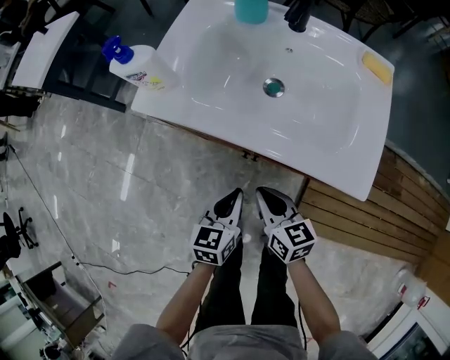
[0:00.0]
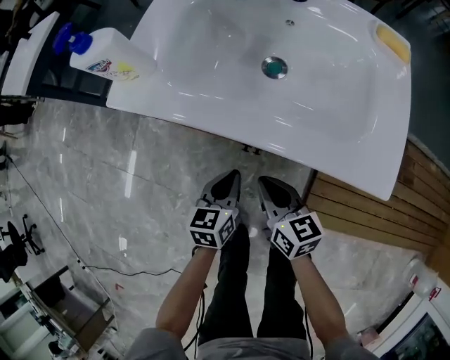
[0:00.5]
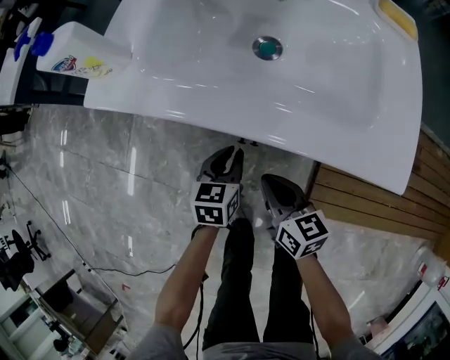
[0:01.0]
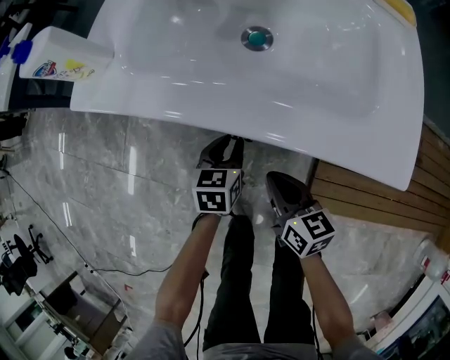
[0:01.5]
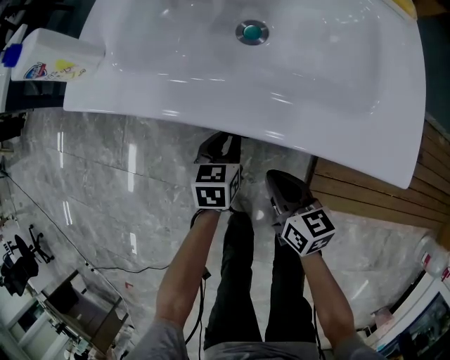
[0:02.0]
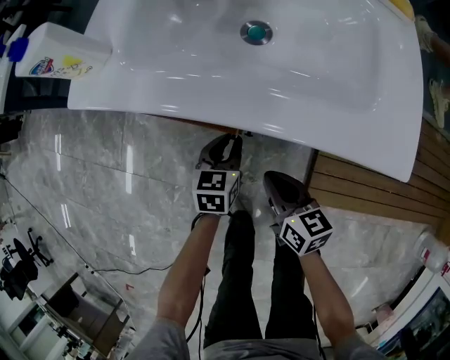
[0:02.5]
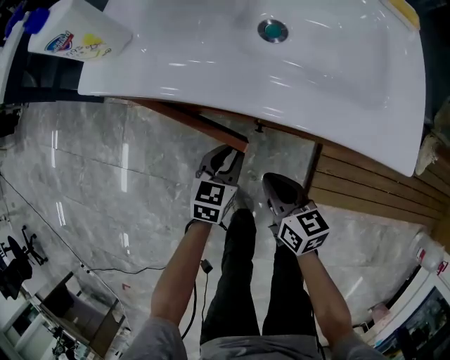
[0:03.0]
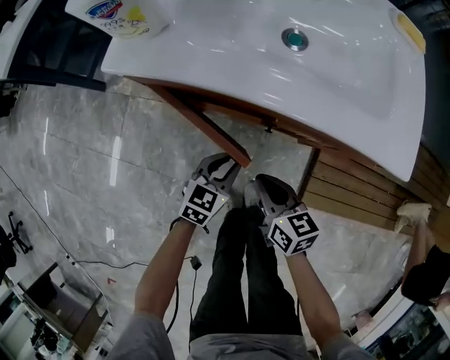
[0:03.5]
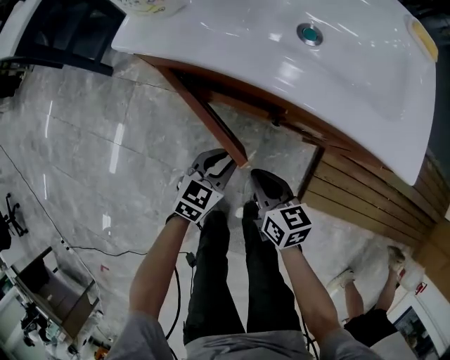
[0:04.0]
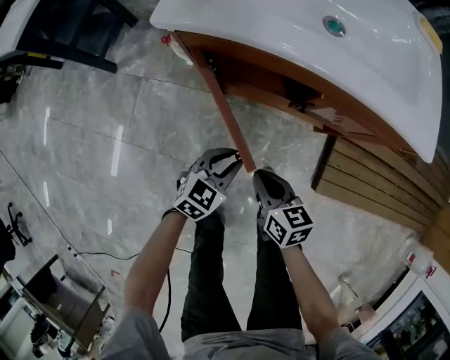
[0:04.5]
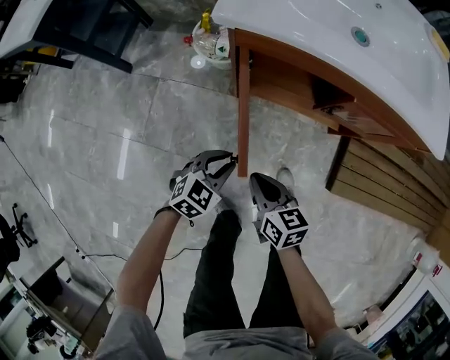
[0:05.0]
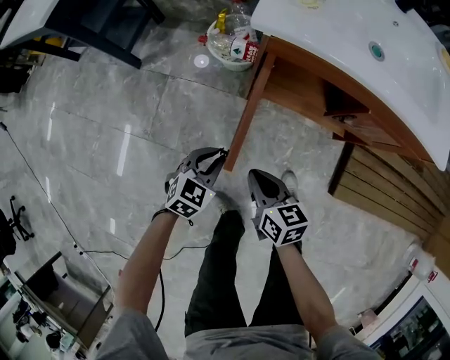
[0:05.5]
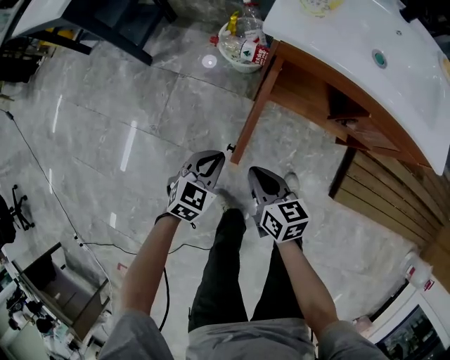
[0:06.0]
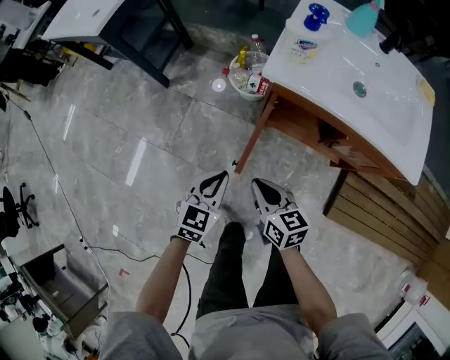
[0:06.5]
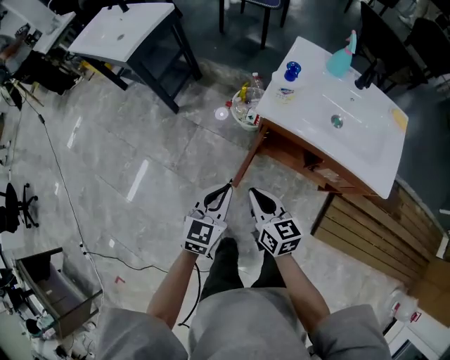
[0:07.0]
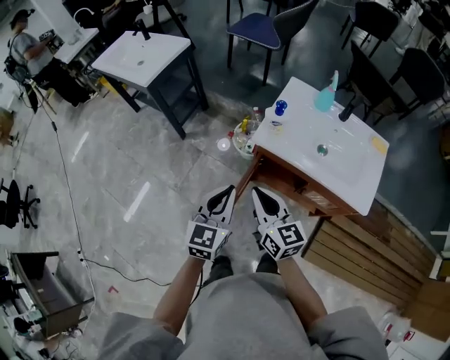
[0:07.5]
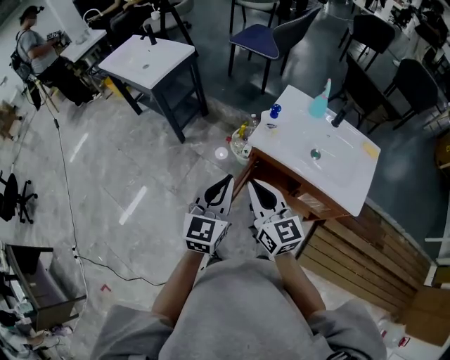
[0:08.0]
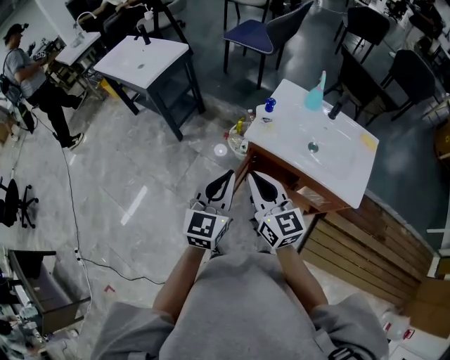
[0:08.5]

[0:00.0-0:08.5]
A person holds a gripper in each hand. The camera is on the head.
0:00.0 to 0:02.0: The left gripper goes approximately 20 cm downward and forward. The right gripper is displaced downward by approximately 10 cm.
0:02.0 to 0:04.0: The left gripper goes roughly 10 cm backward and to the left, and turns by approximately 20 degrees. The right gripper goes some 10 cm to the left.
0:04.0 to 0:06.5: The grippers both shift to the left and upward by approximately 30 cm.
0:06.5 to 0:08.5: The two grippers go approximately 35 cm upward. The left gripper changes its angle by approximately 30 degrees; the right gripper turns by approximately 30 degrees.

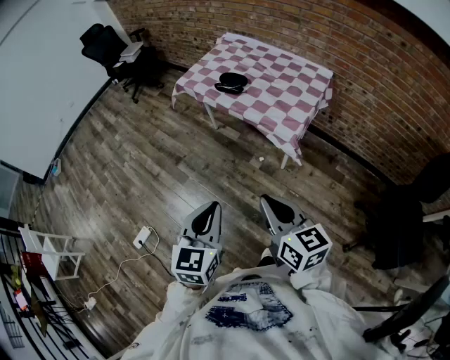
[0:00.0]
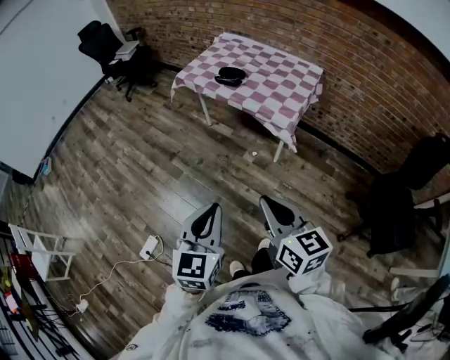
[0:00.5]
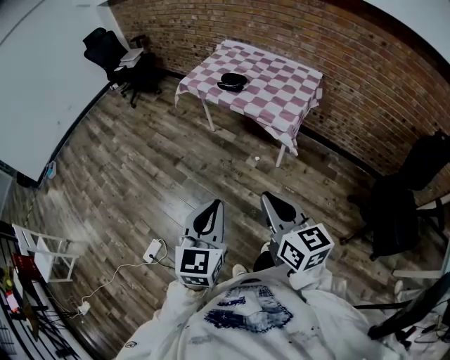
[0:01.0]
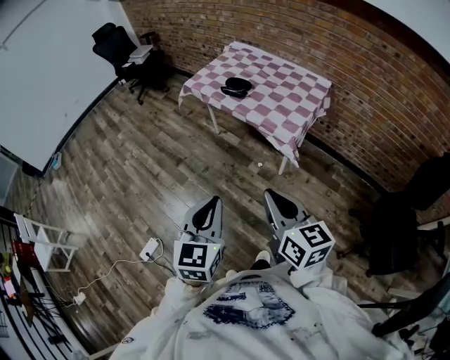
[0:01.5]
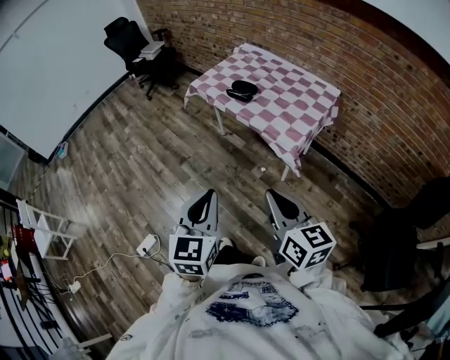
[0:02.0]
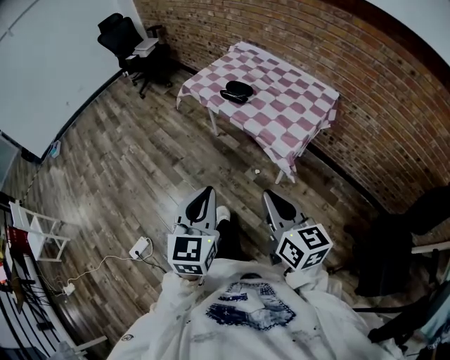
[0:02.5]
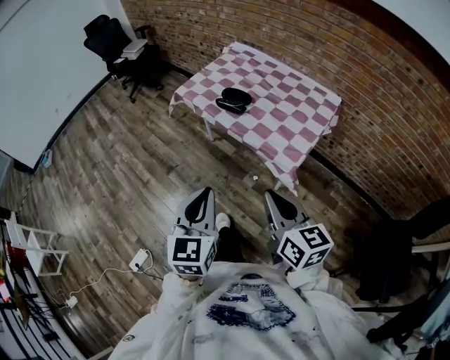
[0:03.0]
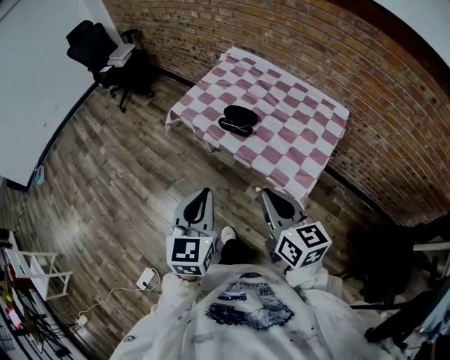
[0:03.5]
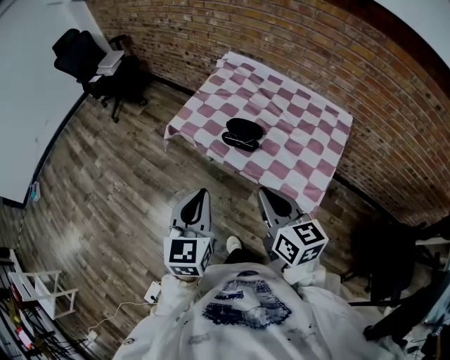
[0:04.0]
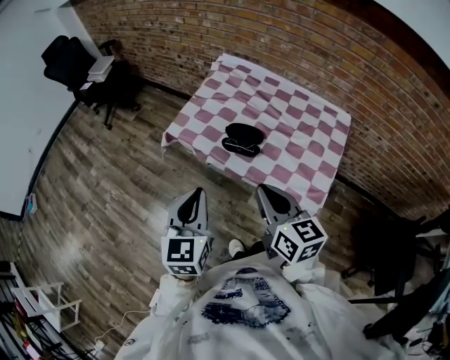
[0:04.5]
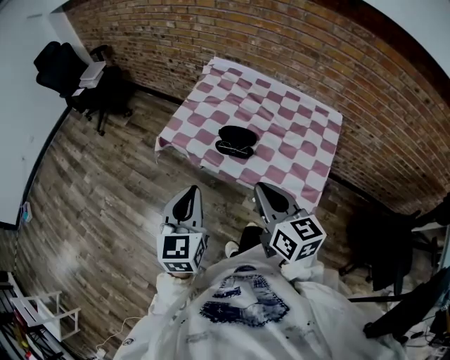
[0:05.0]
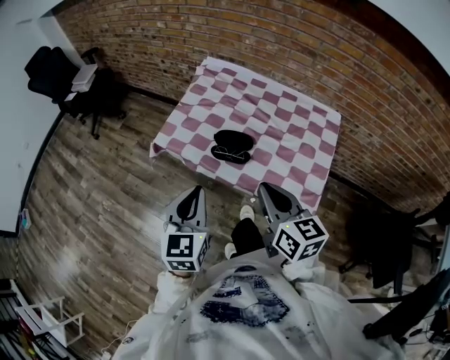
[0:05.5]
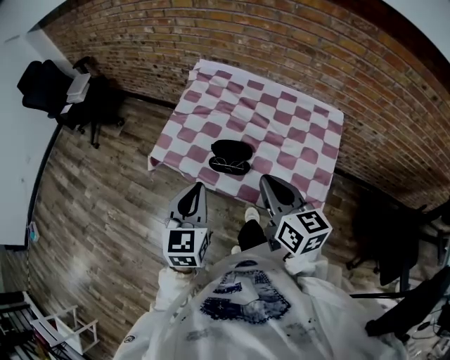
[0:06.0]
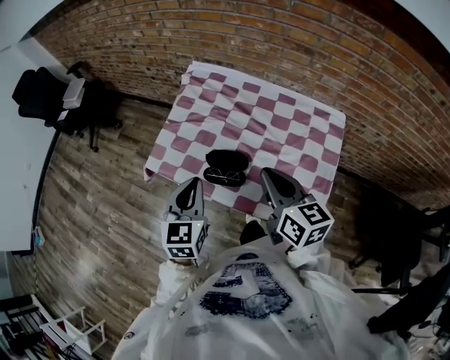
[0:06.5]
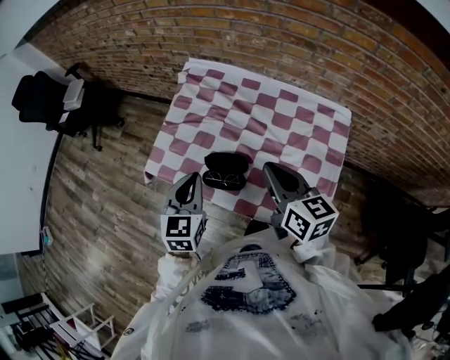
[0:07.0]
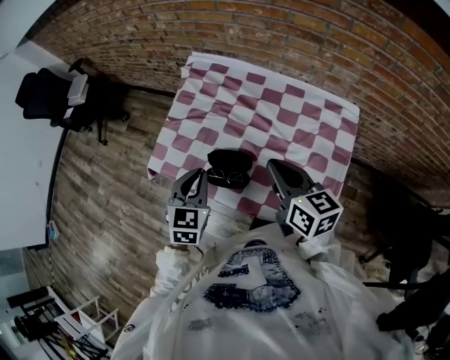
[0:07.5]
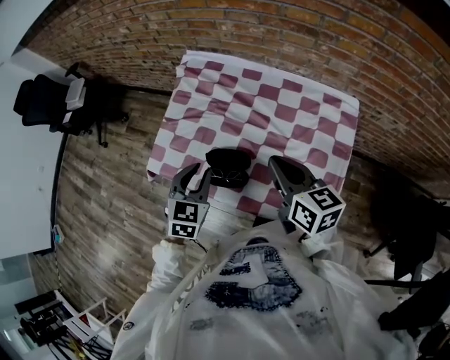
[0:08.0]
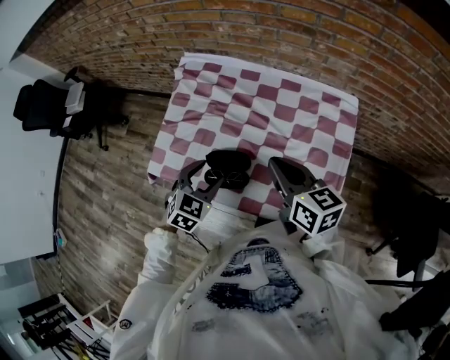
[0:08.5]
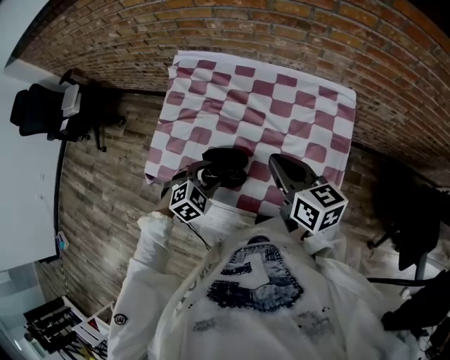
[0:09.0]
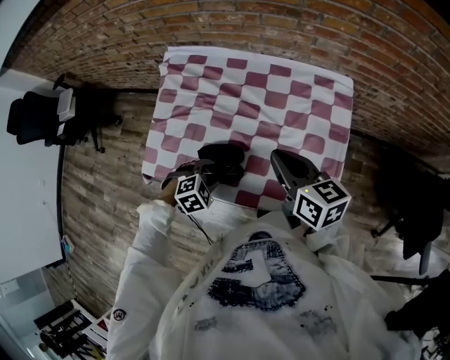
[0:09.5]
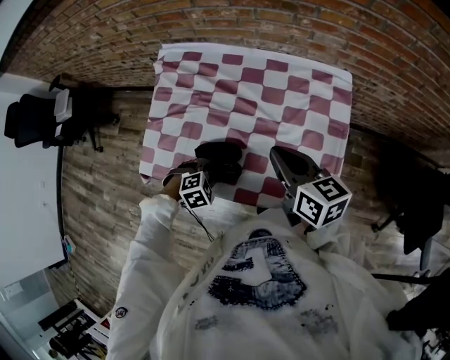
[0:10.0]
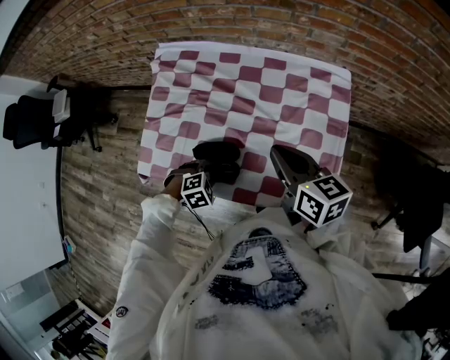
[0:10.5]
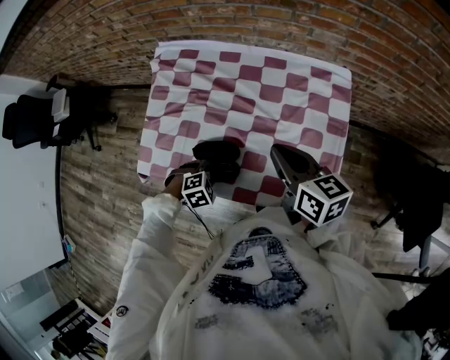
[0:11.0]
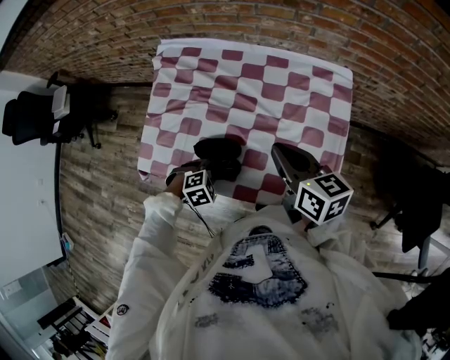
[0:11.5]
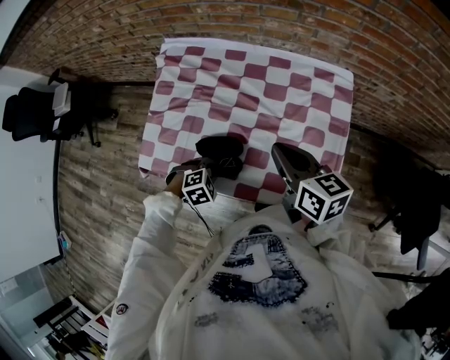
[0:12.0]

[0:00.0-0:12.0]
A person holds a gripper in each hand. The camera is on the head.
0:00.0 to 0:02.0: The right gripper goes backward and returns, some 10 cm each way; the left gripper moves approximately 10 cm backward and comes back.
0:02.0 to 0:04.0: The pair of grippers is taken forward, about 40 cm.
0:04.0 to 0:06.0: Both grippers travel together forward, roughly 15 cm.
0:06.0 to 0:08.0: The right gripper goes some 15 cm forward and to the right. The left gripper shifts about 20 cm forward, downward and to the right, and changes its angle by about 20 degrees.
0:08.0 to 0:10.0: The left gripper is displaced downward by about 20 cm, and angles its fingers downward, by roughly 40 degrees.
0:10.0 to 0:12.0: The left gripper closes.

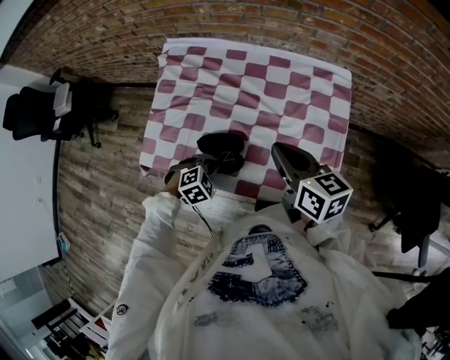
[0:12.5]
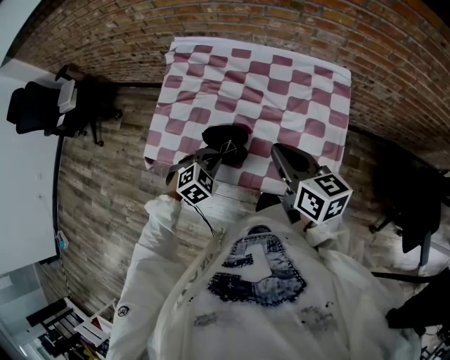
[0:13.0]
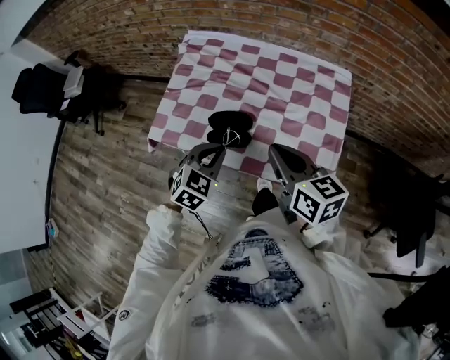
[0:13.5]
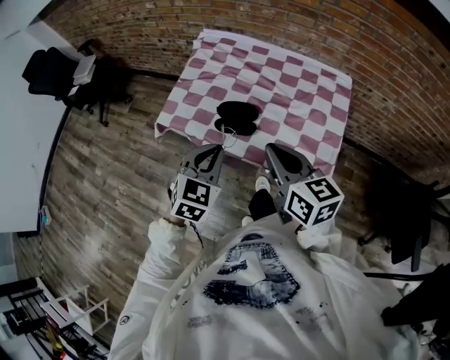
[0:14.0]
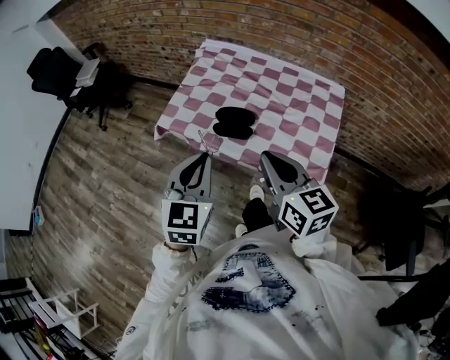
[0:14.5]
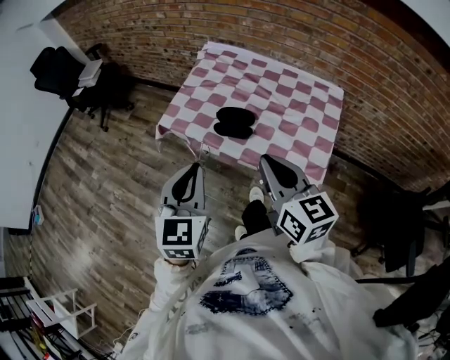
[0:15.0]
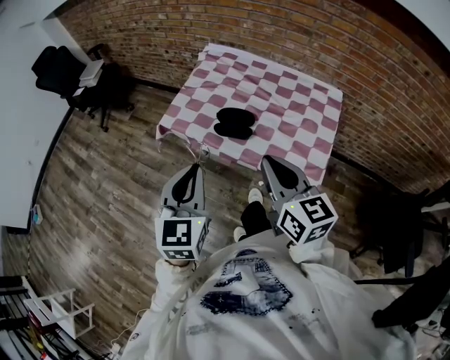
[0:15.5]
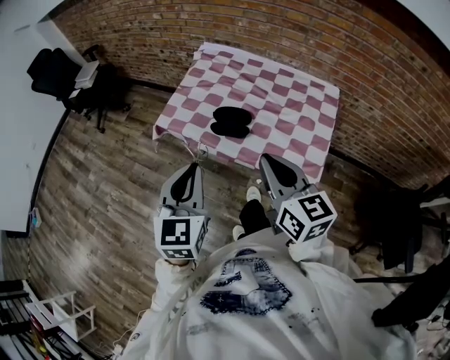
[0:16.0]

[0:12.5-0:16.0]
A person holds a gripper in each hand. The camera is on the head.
0:12.5 to 0:14.5: The left gripper moves upward and backward, roughly 35 cm, and tilts its fingers about 50 degrees upward, while the right gripper goes some 25 cm backward and upward.
0:14.5 to 0:16.0: The left gripper ends up approximately 5 cm from where it was.

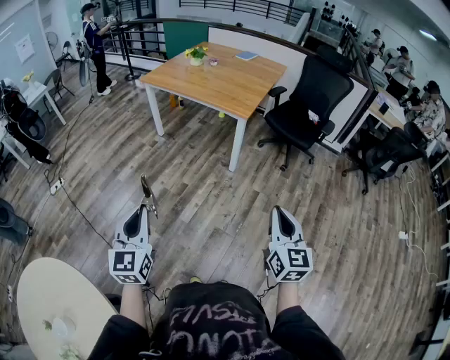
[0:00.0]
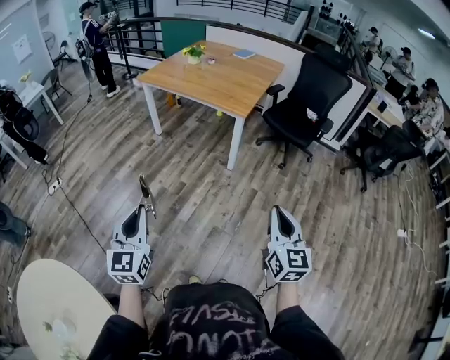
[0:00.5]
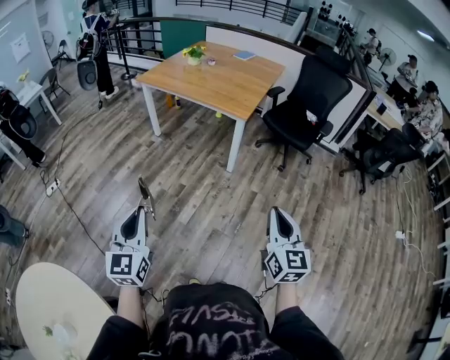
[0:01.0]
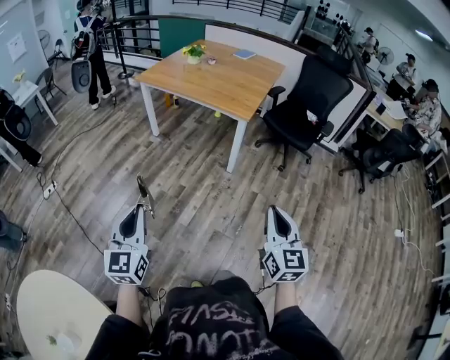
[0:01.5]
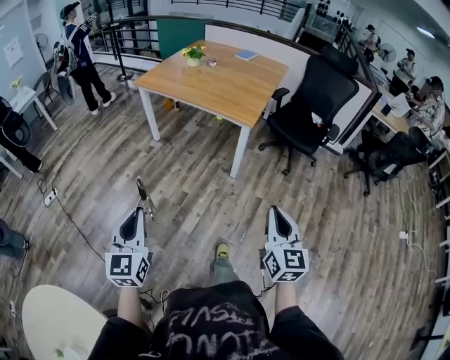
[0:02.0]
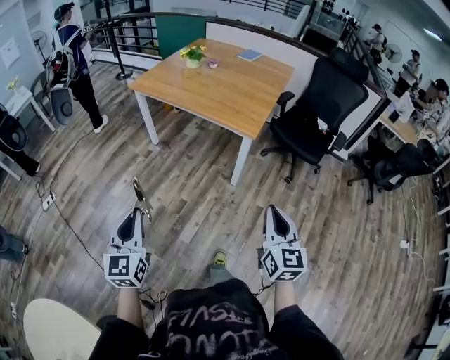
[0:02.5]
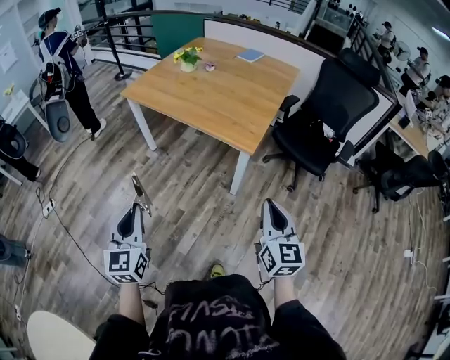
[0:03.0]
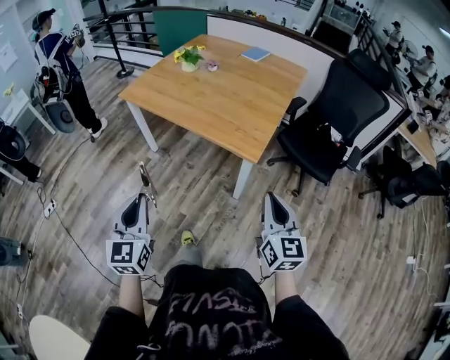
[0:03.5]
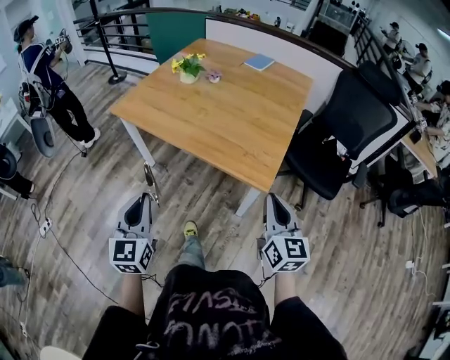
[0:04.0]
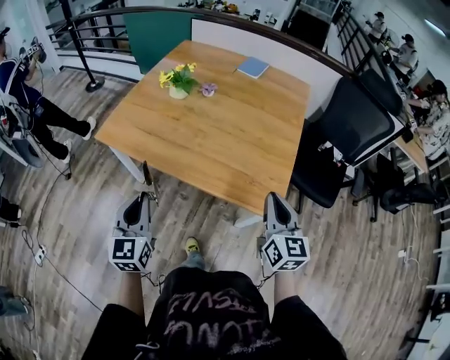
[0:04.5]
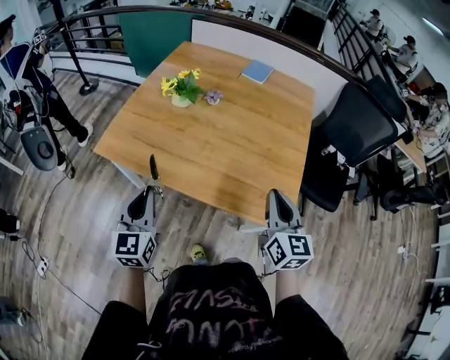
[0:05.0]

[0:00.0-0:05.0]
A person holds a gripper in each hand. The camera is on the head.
0:00.0 to 0:02.5: Both grippers move forward, some 20 cm.
0:02.5 to 0:05.0: Both grippers are carried forward, approximately 60 cm.
